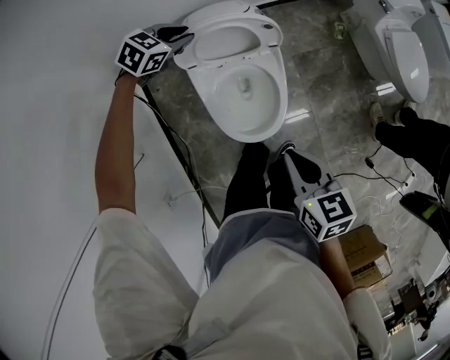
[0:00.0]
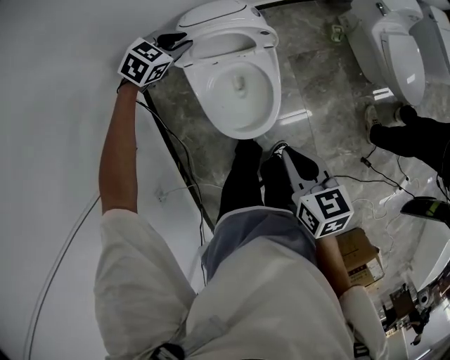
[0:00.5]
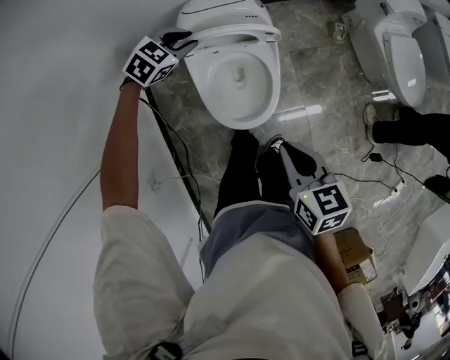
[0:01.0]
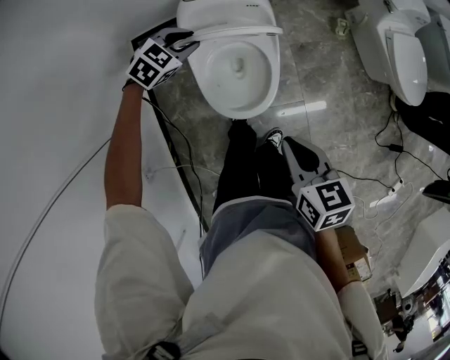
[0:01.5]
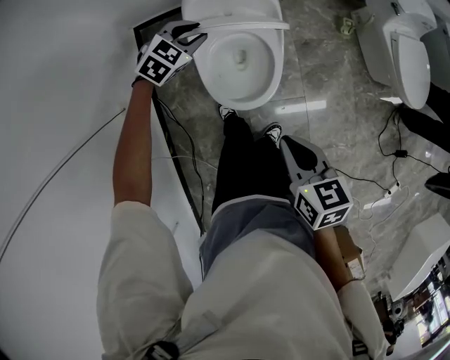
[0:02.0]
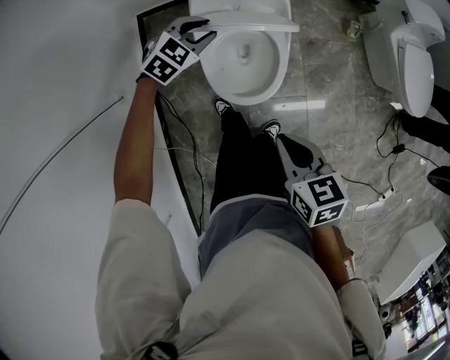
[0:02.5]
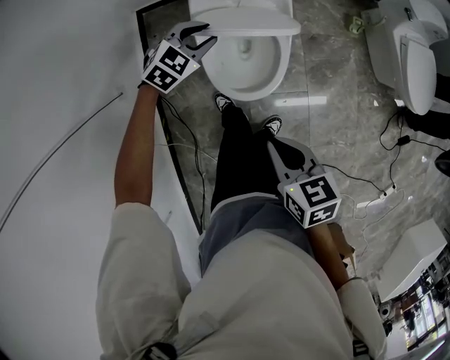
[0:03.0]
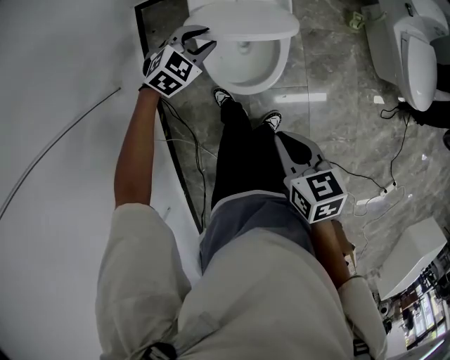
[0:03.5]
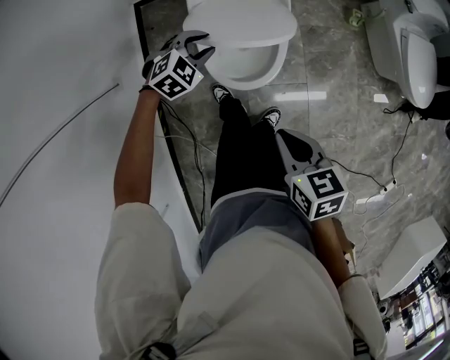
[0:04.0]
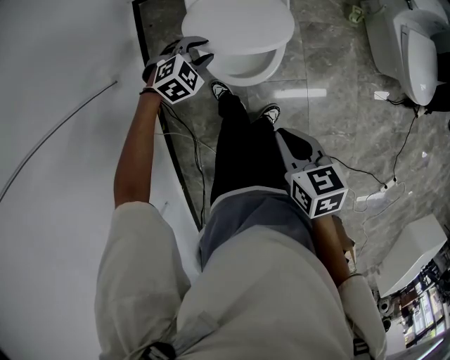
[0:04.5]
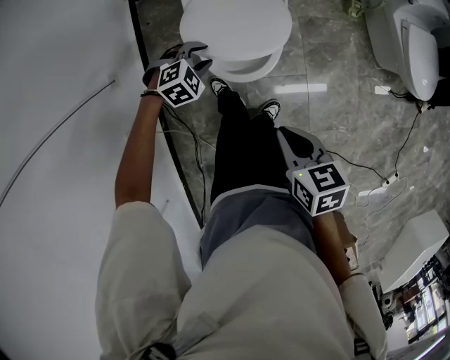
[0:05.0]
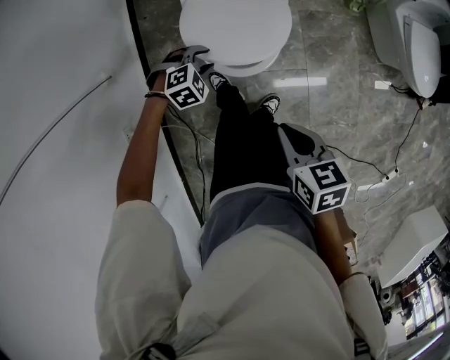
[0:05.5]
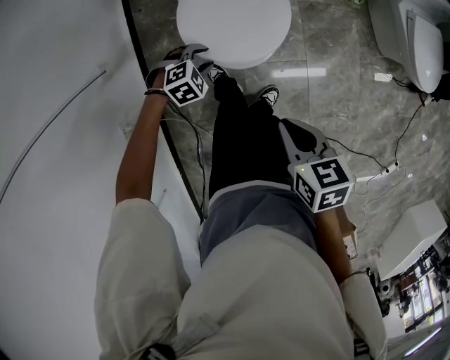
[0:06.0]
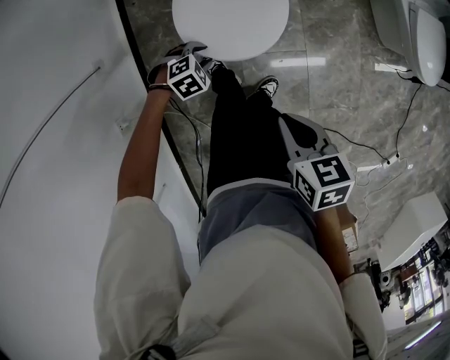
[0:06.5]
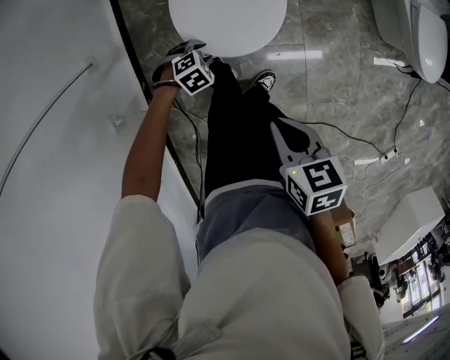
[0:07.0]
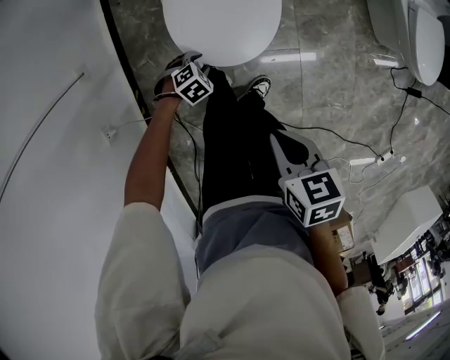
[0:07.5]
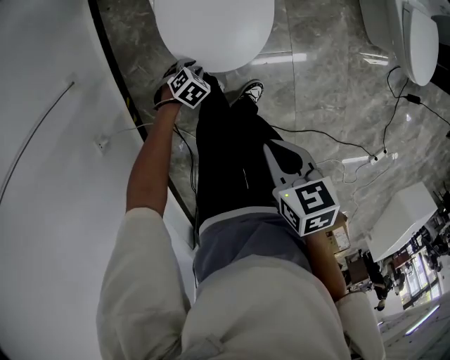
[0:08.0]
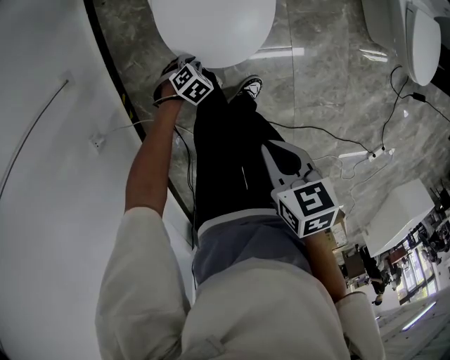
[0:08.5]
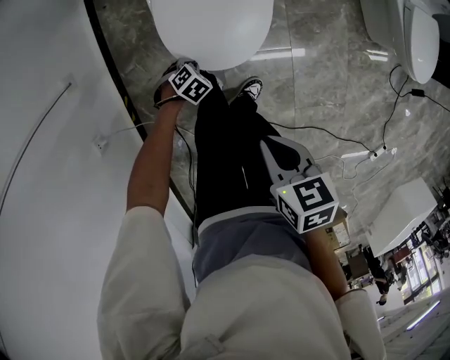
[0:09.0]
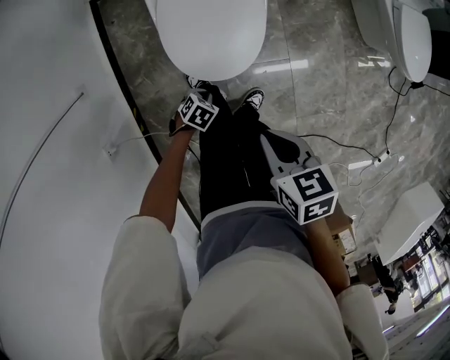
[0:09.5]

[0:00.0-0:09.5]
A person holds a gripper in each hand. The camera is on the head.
0:00.0 to 0:02.0: The right gripper is displaced backward by about 10 cm, while the left gripper shifts some 15 cm backward.
0:02.0 to 0:04.0: The left gripper heads backward and downward, covering some 15 cm; the right gripper ends up about 5 cm from where it was.
0:04.0 to 0:05.5: The left gripper moves downward and backward, about 10 cm.
0:05.5 to 0:07.5: The left gripper moves downward, about 15 cm, and swivels about 20 degrees. Meanwhile the right gripper travels downward by approximately 5 cm.
0:07.5 to 0:09.5: The left gripper ends up some 5 cm from where it was, changes its angle by roughly 20 degrees, and closes up.

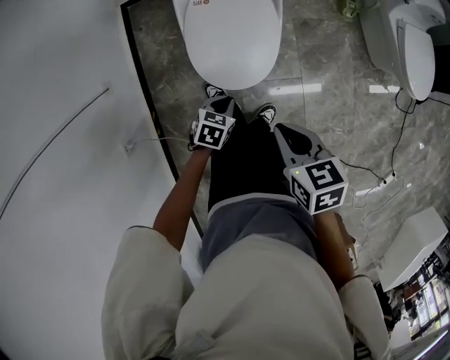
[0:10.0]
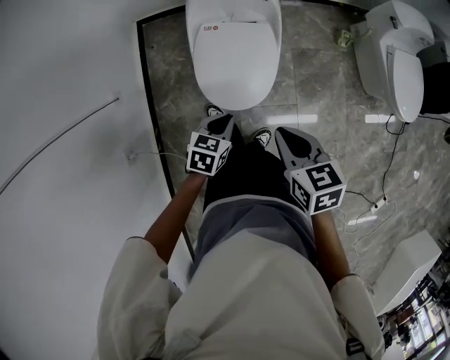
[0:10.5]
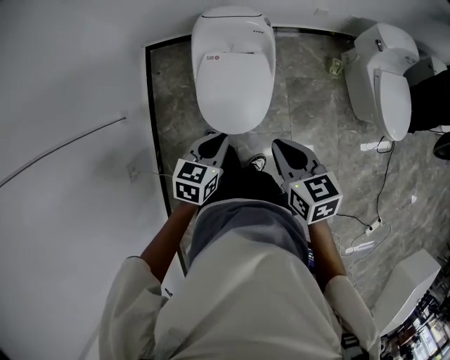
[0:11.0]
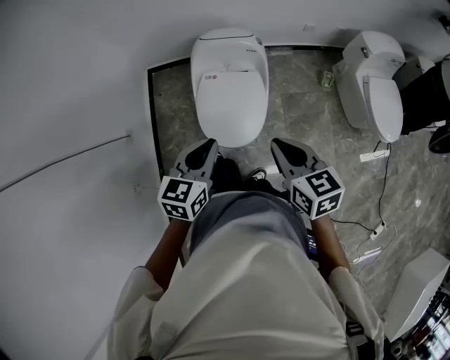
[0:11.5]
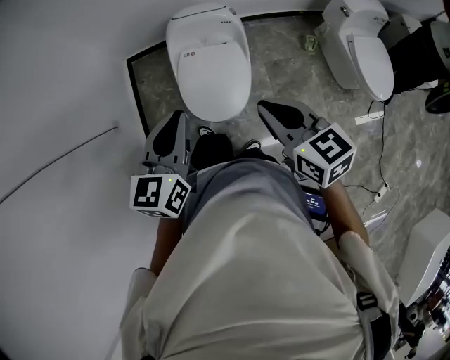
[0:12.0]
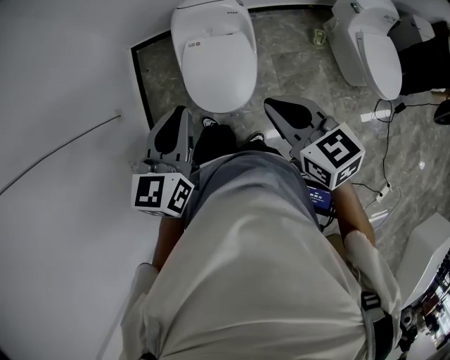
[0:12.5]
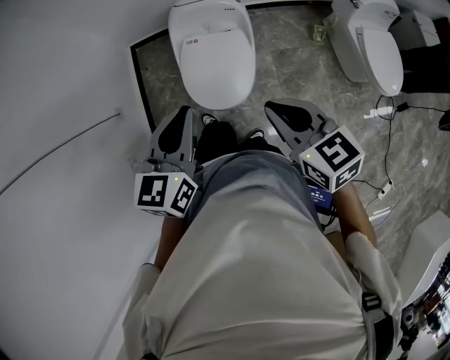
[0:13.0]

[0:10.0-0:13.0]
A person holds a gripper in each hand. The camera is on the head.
0:10.0 to 0:11.5: The right gripper is displaced upward by approximately 15 cm, and swivels about 20 degrees; the left gripper moves upward, approximately 35 cm, and points its fingers approximately 30 degrees further upward.
0:11.5 to 0:13.0: The right gripper moves approximately 5 cm. The left gripper shifts approximately 10 cm upward.

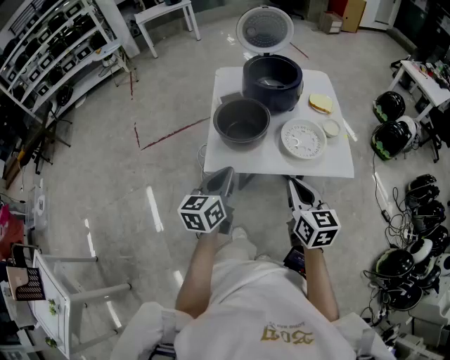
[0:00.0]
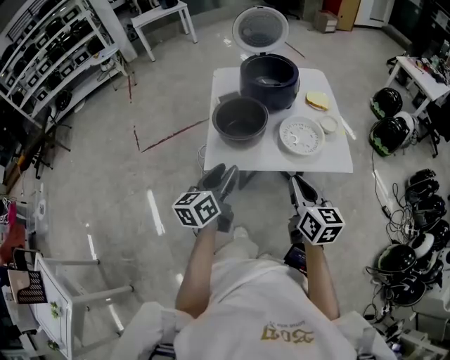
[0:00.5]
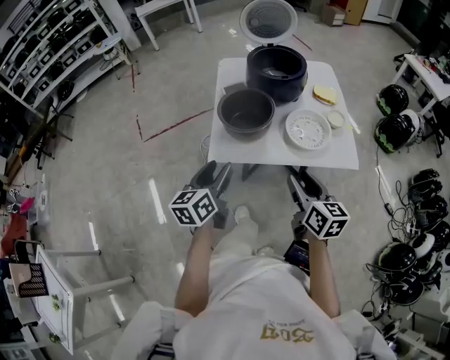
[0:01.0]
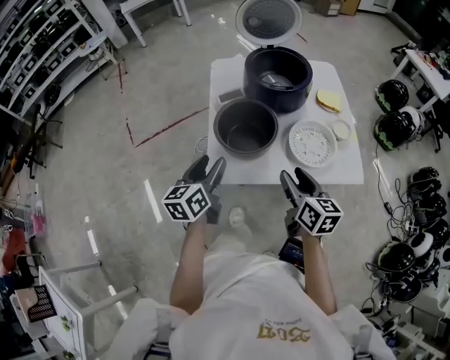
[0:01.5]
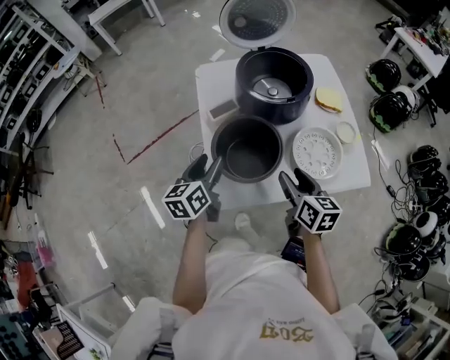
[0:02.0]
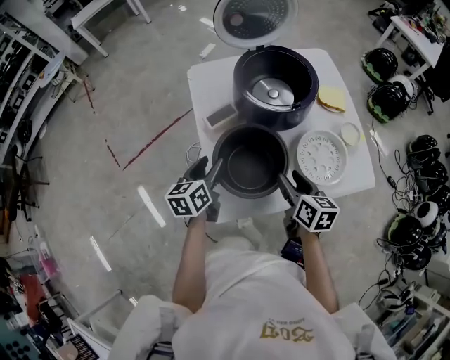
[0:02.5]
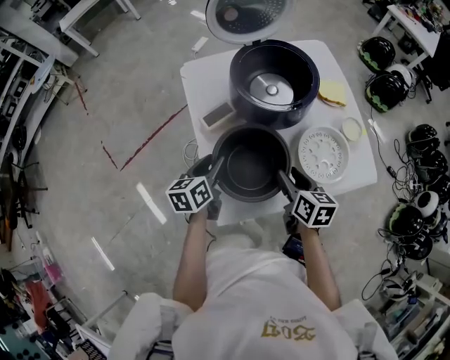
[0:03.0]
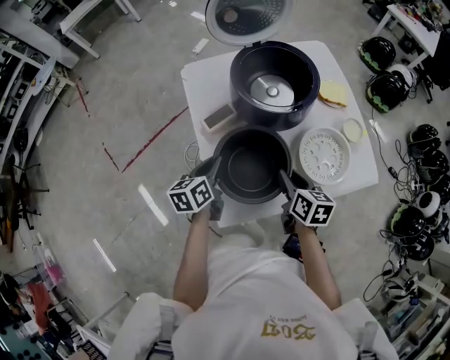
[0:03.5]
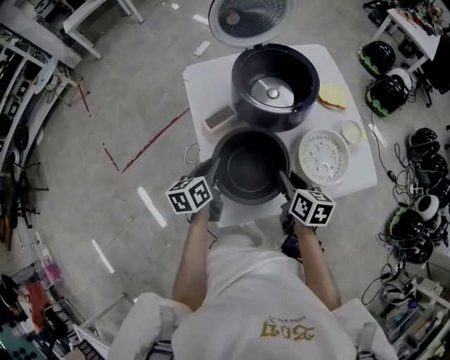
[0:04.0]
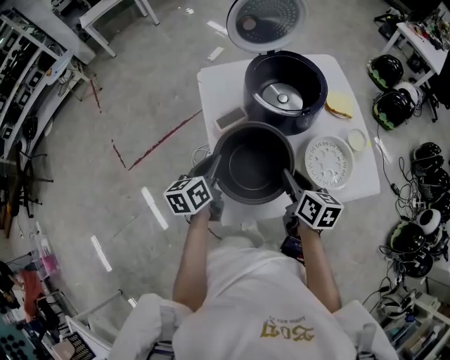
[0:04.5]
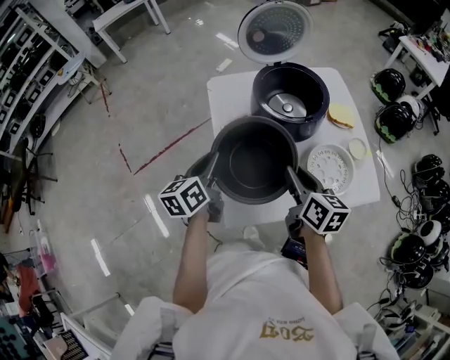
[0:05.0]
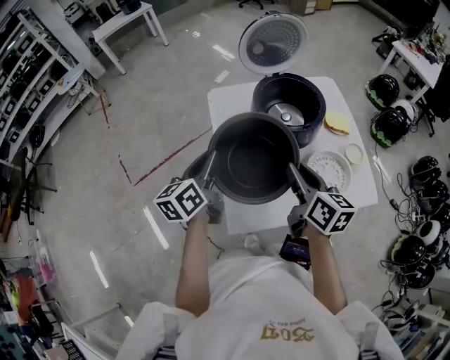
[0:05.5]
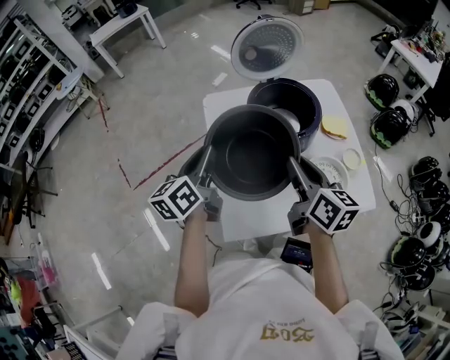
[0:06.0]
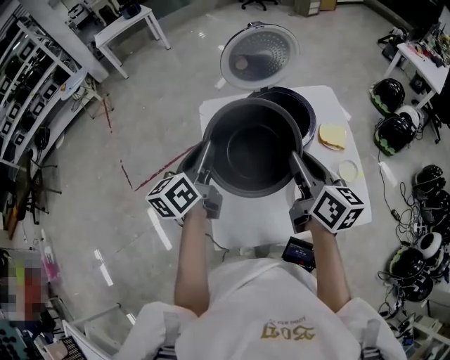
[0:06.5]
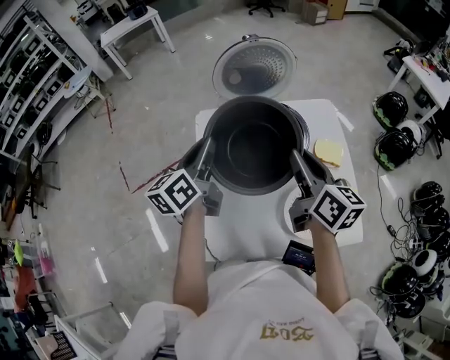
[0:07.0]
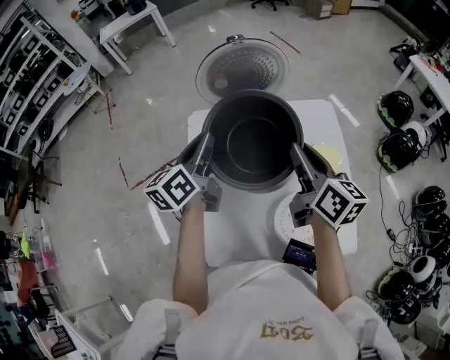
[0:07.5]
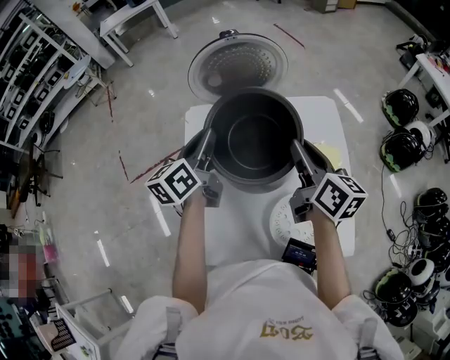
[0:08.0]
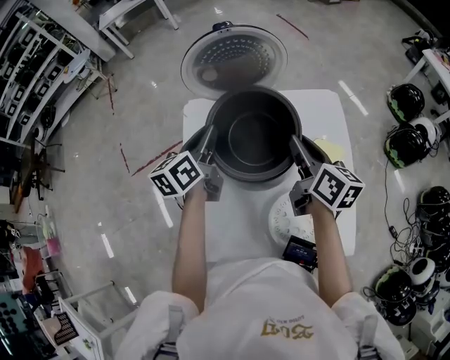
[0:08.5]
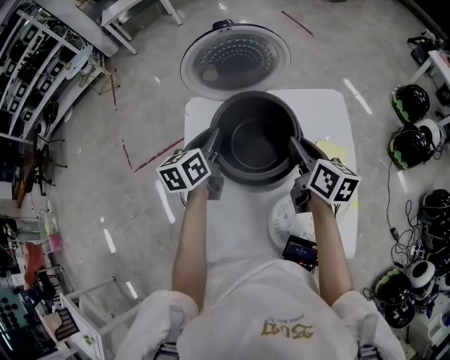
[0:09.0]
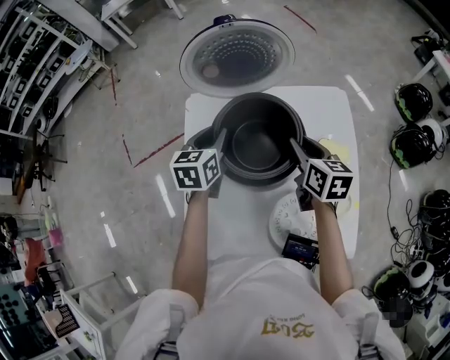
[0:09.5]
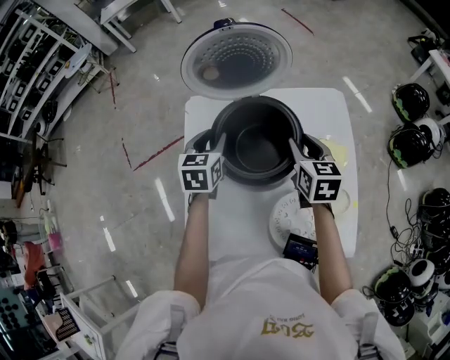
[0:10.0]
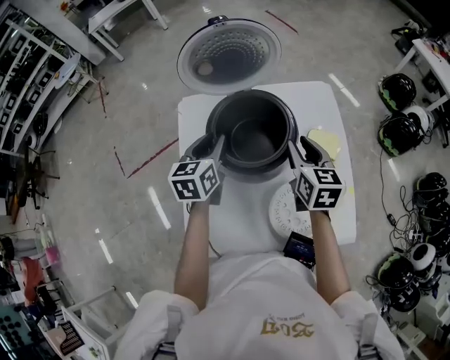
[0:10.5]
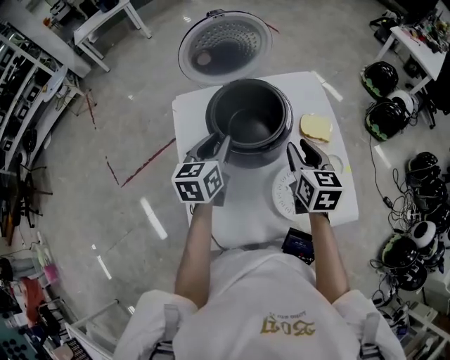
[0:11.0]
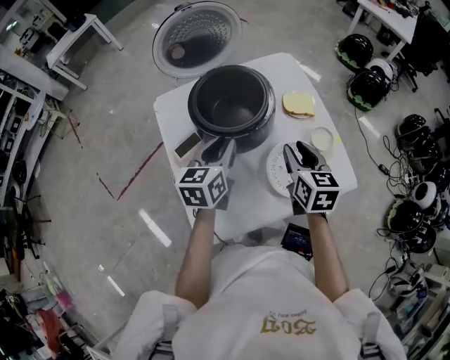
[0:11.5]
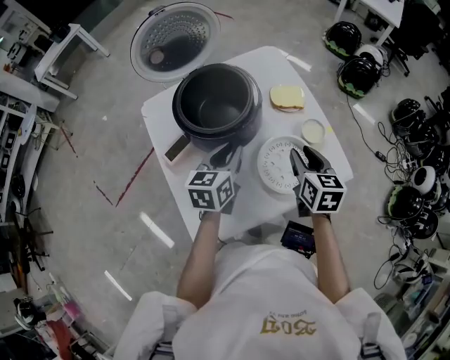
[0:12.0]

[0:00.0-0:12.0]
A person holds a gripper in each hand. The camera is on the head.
0:00.0 to 0:02.0: Both grippers move forward, approximately 20 cm. The left gripper opens. The right gripper rotates roughly 20 degrees, and opens.
0:02.0 to 0:04.0: Both grippers travel together downward and forward, about 10 cm. The right gripper closes up. Meanwhile the left gripper closes up.
0:04.0 to 0:06.0: Both grippers move upward, about 20 cm. The right gripper swivels roughly 20 degrees. The left gripper turns by roughly 20 degrees.
0:06.0 to 0:08.0: Both grippers travel together forward and to the right, roughly 25 cm.
0:08.0 to 0:10.0: The right gripper travels downward and forward by about 10 cm, and changes its angle by approximately 30 degrees. The left gripper shifts roughly 10 cm downward, changes its angle by about 40 degrees, and opens up.
0:10.0 to 0:12.0: The left gripper ends up roughly 20 cm from where it was, and rotates approximately 30 degrees, while the right gripper shifts by some 25 cm, and changes its angle by some 30 degrees.

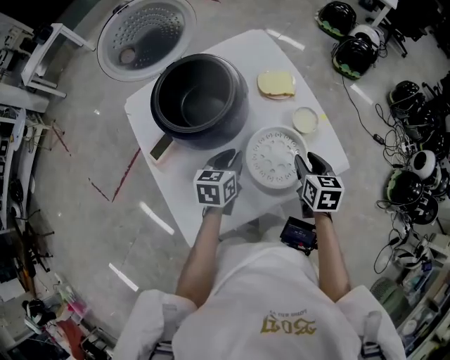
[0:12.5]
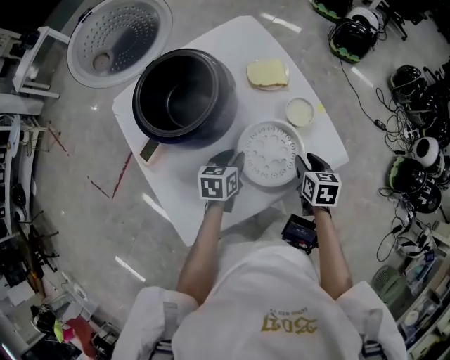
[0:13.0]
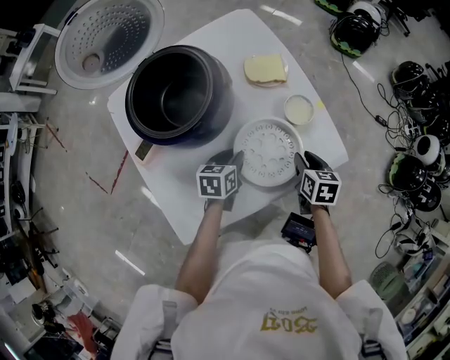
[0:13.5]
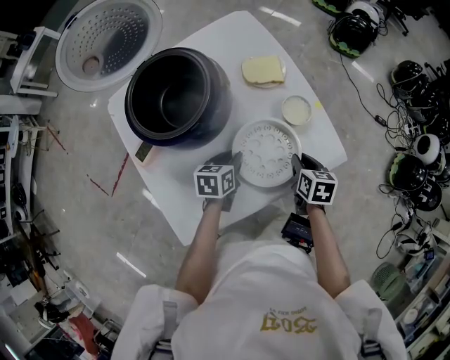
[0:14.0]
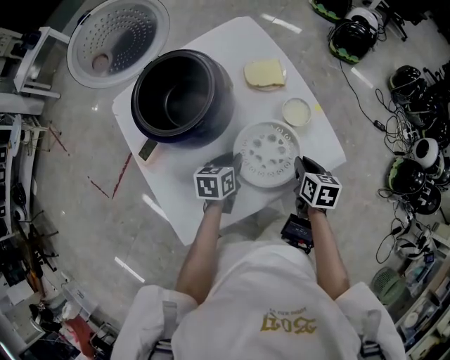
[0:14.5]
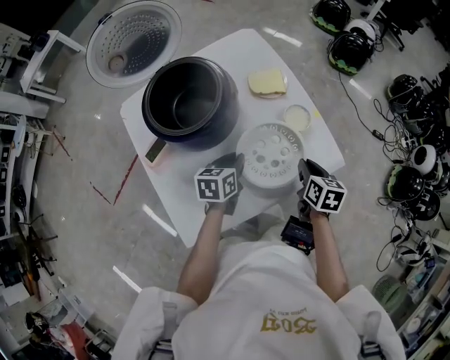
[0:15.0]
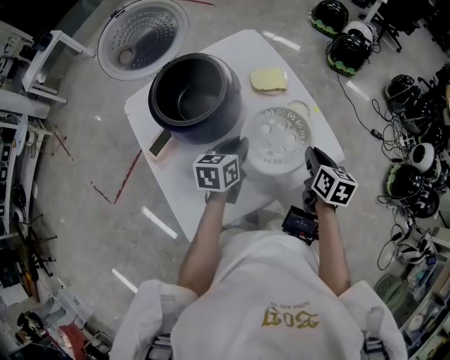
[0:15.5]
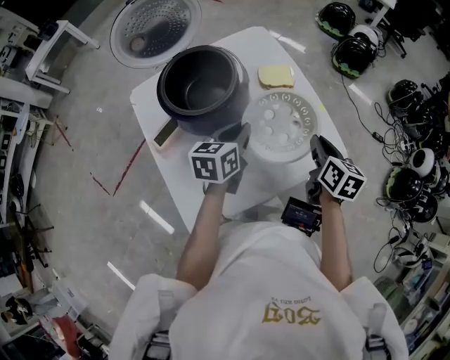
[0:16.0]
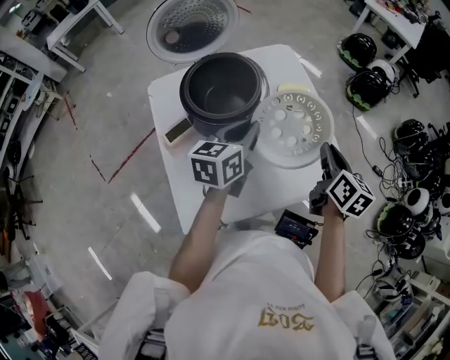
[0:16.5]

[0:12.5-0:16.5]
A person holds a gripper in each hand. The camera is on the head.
0:12.5 to 0:14.5: The two grippers go roughly 5 cm downward. The right gripper closes its fingers.
0:14.5 to 0:16.5: The grippers both shift upward by approximately 20 cm. The right gripper rotates roughly 20 degrees, while the left gripper turns by roughly 30 degrees.
